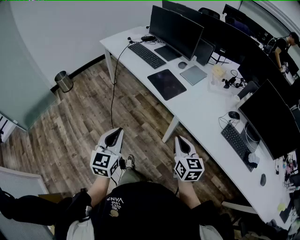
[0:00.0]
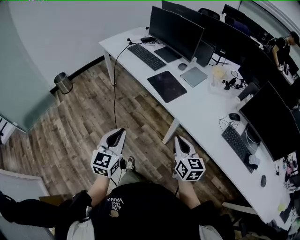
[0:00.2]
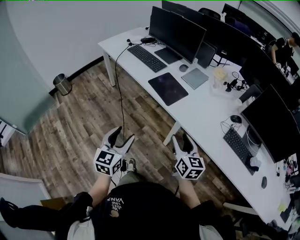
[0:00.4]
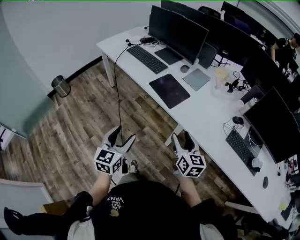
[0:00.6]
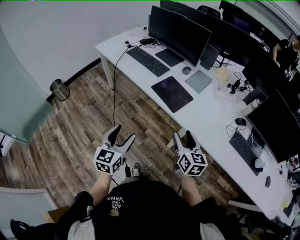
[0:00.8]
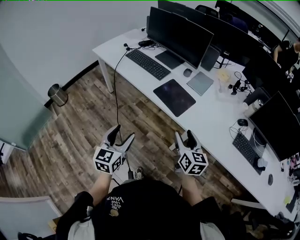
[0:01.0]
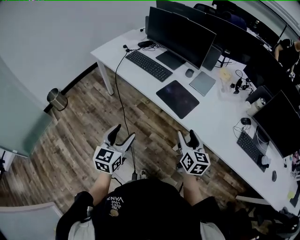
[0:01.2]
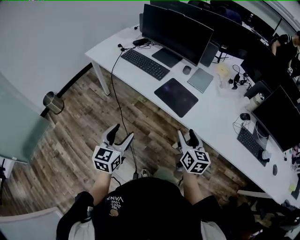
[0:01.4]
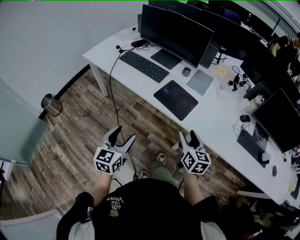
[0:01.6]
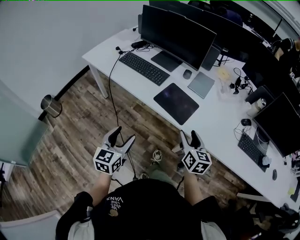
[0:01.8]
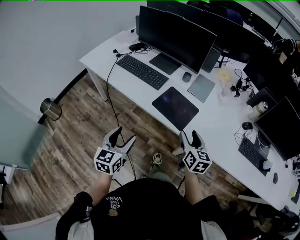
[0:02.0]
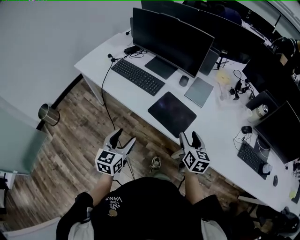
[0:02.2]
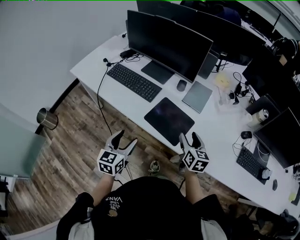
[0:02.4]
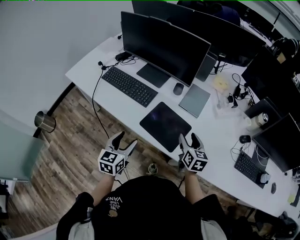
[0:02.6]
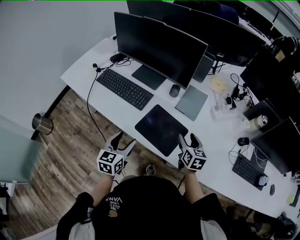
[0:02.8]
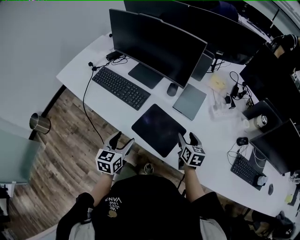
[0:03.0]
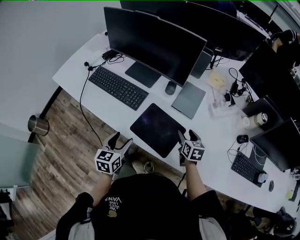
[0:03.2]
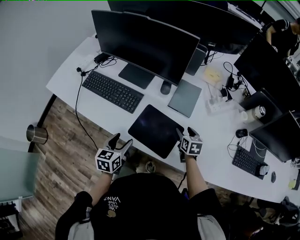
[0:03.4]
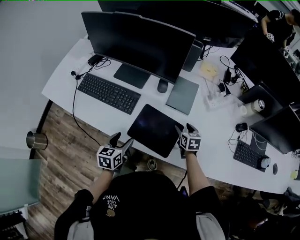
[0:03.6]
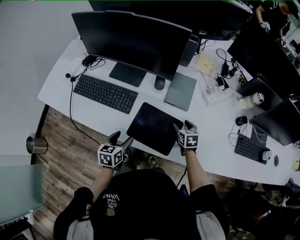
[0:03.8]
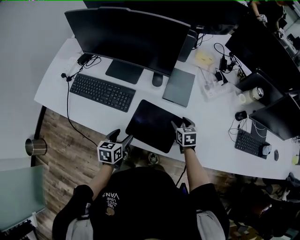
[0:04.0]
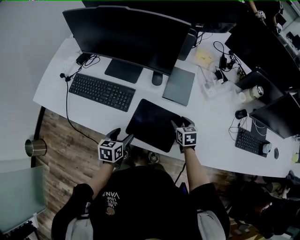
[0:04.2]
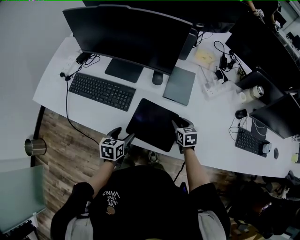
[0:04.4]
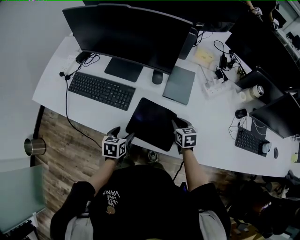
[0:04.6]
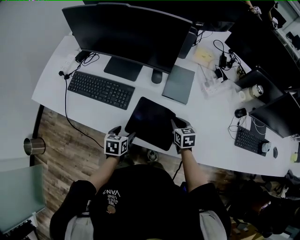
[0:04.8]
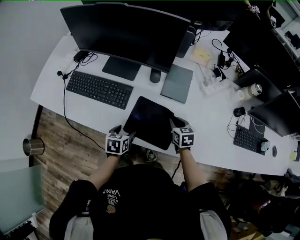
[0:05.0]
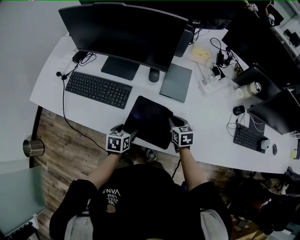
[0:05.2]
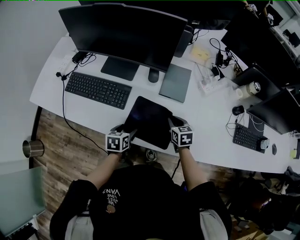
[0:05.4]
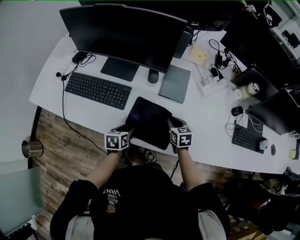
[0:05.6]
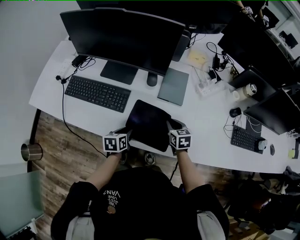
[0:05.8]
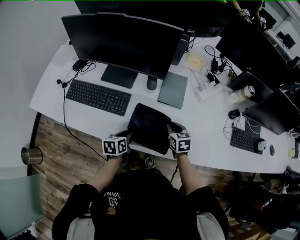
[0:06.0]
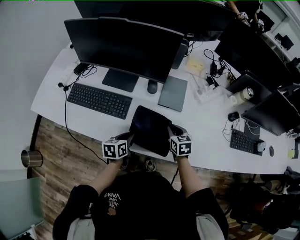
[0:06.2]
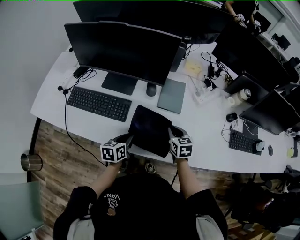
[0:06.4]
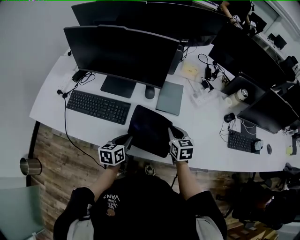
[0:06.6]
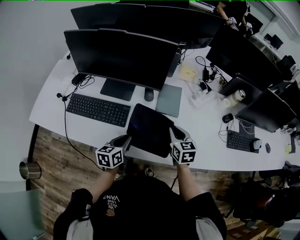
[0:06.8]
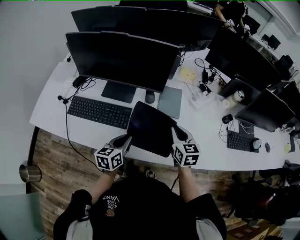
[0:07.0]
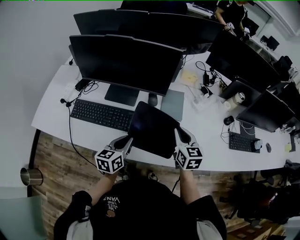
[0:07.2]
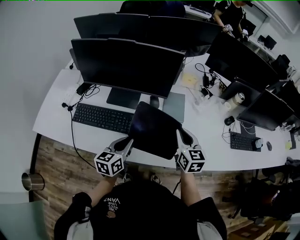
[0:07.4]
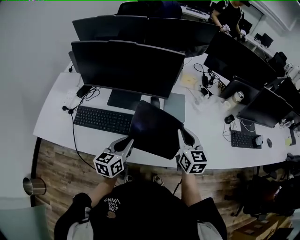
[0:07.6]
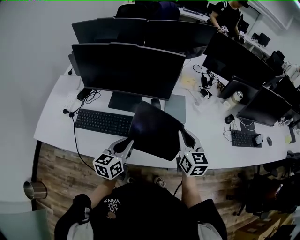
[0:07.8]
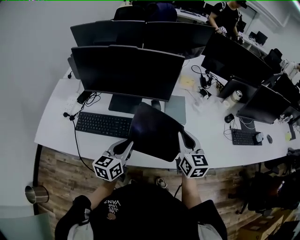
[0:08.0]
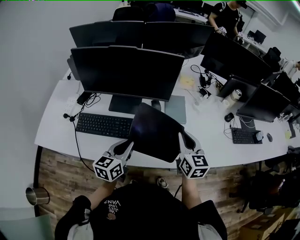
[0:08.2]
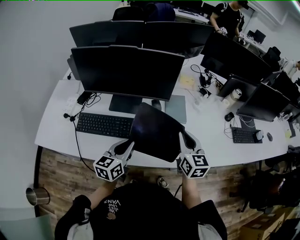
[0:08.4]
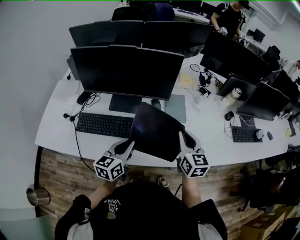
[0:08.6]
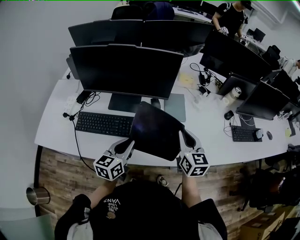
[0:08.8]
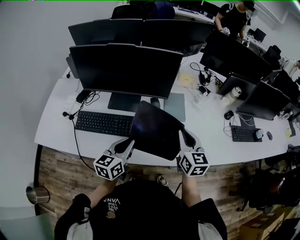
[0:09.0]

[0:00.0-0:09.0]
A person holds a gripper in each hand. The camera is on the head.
0:00.0 to 0:01.6: The two grippers go approximately 20 cm forward and to the left. The left gripper rotates about 20 degrees, and opens its fingers; the right gripper rotates some 20 degrees, and opens its fingers.
0:01.6 to 0:03.0: The left gripper goes some 25 cm forward, while the right gripper heads forward and downward, covering some 30 cm.
0:03.0 to 0:04.4: The right gripper is displaced downward by approximately 10 cm; the left gripper heads downward and forward, covering roughly 10 cm, and swivels some 30 degrees.
0:04.4 to 0:06.0: The left gripper closes its fingers; the right gripper closes its fingers.
0:06.0 to 0:07.6: The grippers both shift upward by some 20 cm. The left gripper rotates approximately 30 degrees, while the right gripper changes its angle by roughly 30 degrees.
0:07.6 to 0:09.0: There are only small adjustments of the grippers.

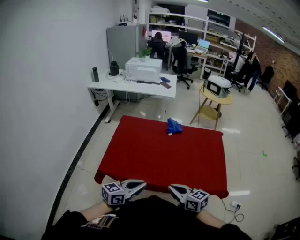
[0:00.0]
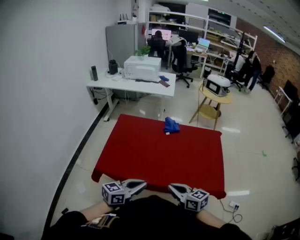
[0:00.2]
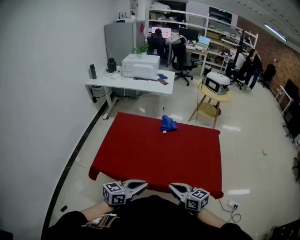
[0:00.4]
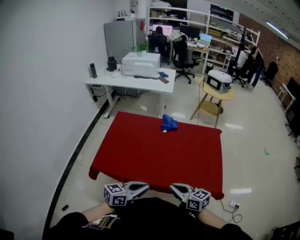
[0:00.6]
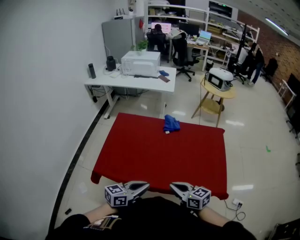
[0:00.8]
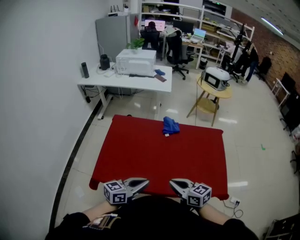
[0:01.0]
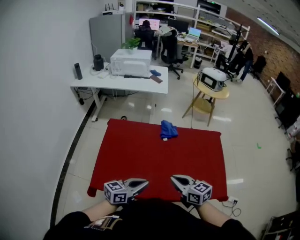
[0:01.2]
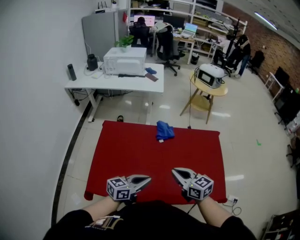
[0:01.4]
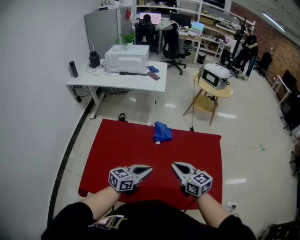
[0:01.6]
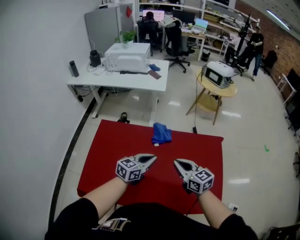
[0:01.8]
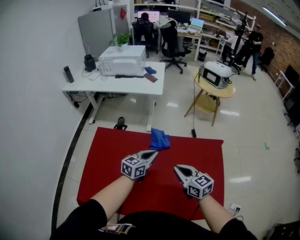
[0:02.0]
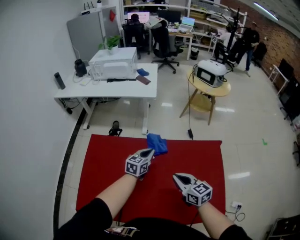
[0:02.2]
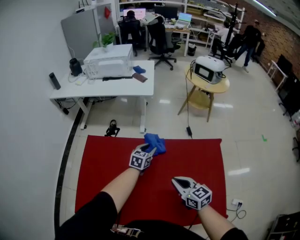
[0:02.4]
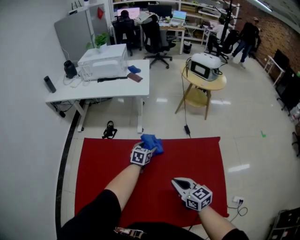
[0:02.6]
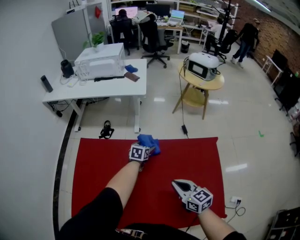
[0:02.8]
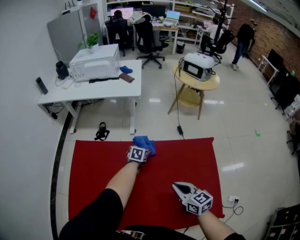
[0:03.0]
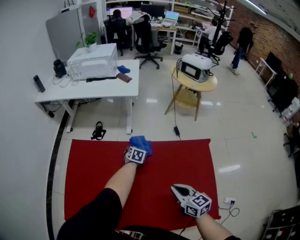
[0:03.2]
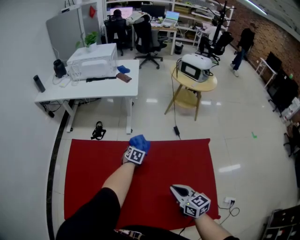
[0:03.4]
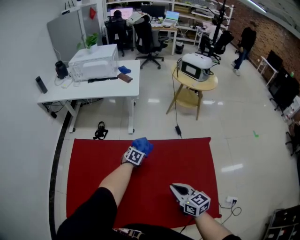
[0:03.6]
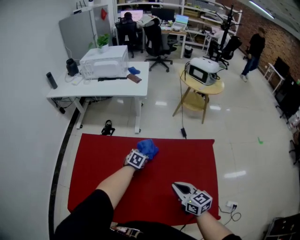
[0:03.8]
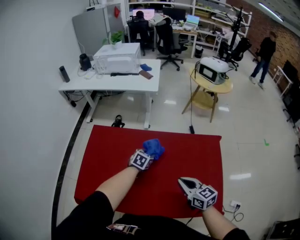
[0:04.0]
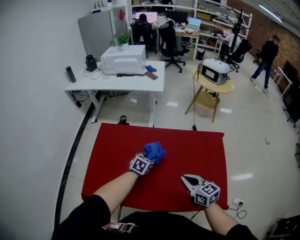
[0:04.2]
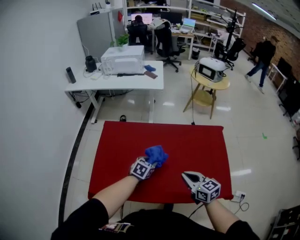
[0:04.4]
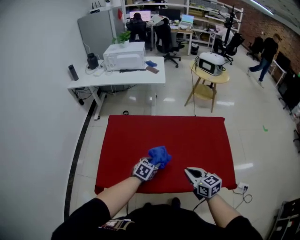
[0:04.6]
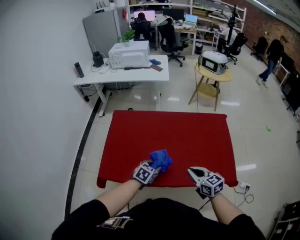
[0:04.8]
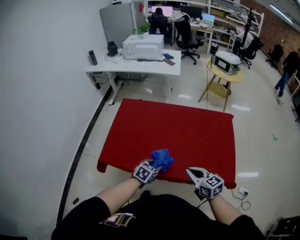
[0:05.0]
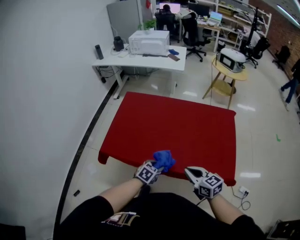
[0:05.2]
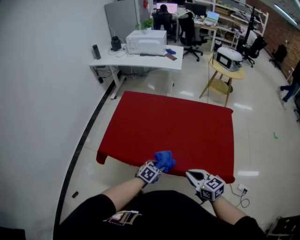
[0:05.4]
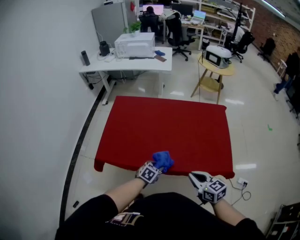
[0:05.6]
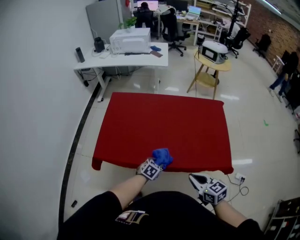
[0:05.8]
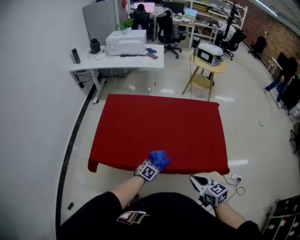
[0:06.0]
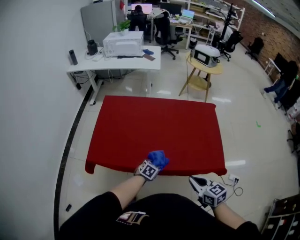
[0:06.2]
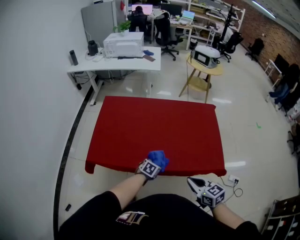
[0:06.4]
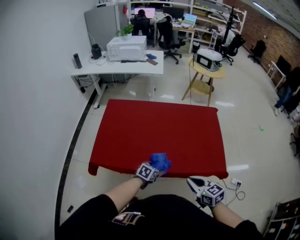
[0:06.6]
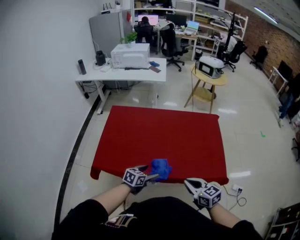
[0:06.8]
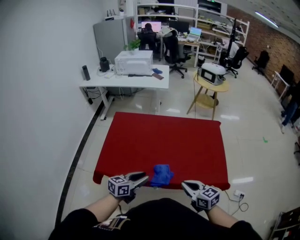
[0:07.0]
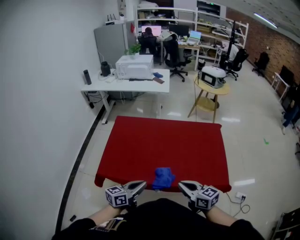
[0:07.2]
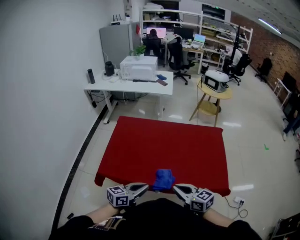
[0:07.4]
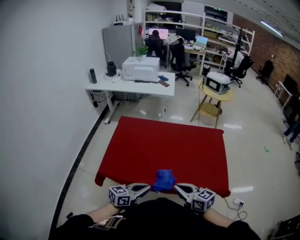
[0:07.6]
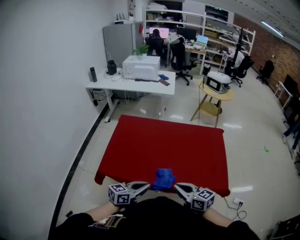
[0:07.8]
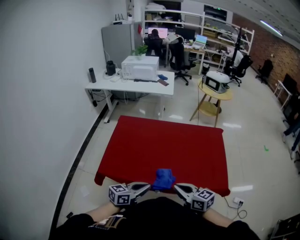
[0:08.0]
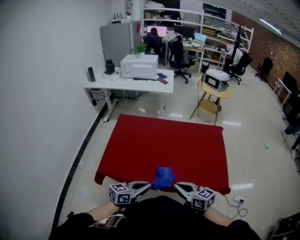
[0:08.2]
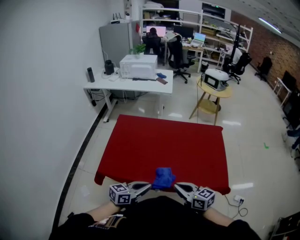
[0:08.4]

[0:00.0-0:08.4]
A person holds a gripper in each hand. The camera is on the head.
0:00.0 to 0:01.4: The grippers both shift forward by roughly 20 cm.
0:01.4 to 0:02.8: The left gripper is displaced forward and downward by approximately 50 cm, points its fingers some 30 degrees further downward, and opens its fingers; the right gripper heads forward, to the right and downward, covering roughly 20 cm.
0:02.8 to 0:04.2: The right gripper heads backward, covering roughly 10 cm. Meanwhile the left gripper shifts some 20 cm backward, and closes its fingers.
0:04.2 to 0:05.6: The two grippers go about 30 cm backward.
0:05.6 to 0:07.0: The left gripper heads upward, covering approximately 15 cm, angles its fingers upward, by roughly 40 degrees, and opens, then closes once more.
0:07.0 to 0:08.4: The left gripper ends up some 5 cm from where it was, and closes its fingers.

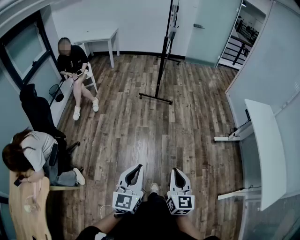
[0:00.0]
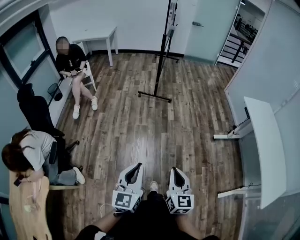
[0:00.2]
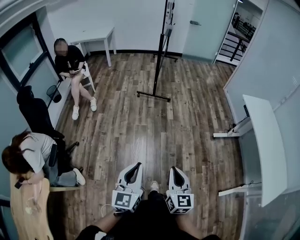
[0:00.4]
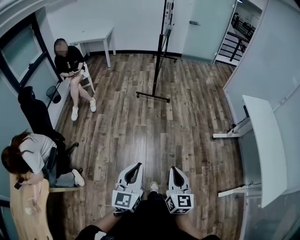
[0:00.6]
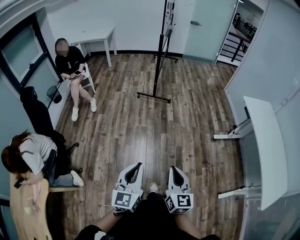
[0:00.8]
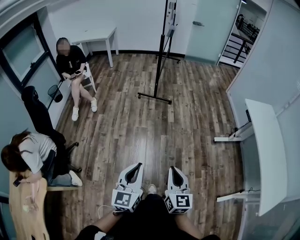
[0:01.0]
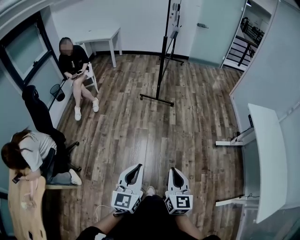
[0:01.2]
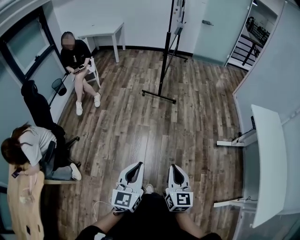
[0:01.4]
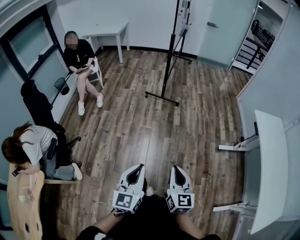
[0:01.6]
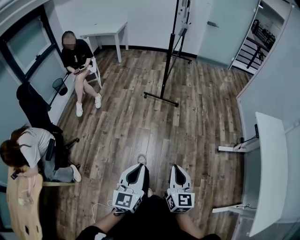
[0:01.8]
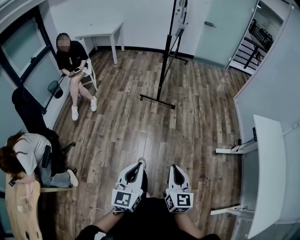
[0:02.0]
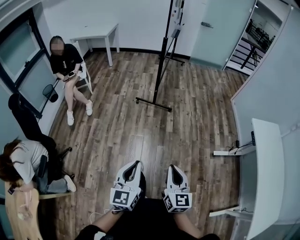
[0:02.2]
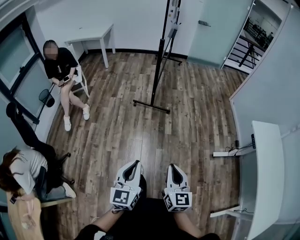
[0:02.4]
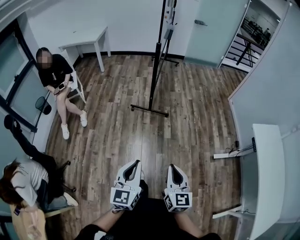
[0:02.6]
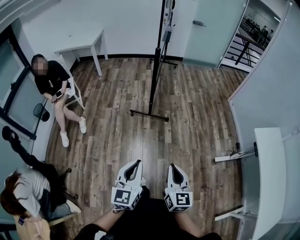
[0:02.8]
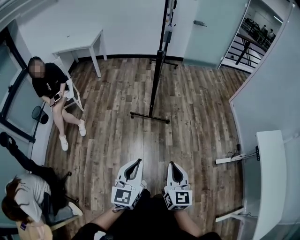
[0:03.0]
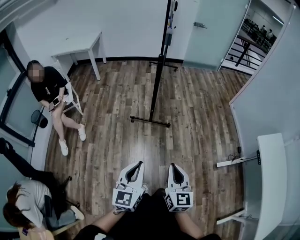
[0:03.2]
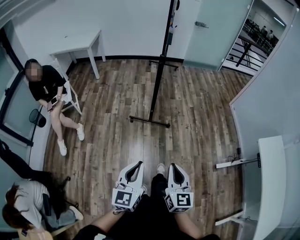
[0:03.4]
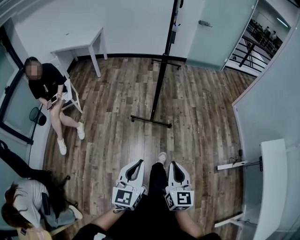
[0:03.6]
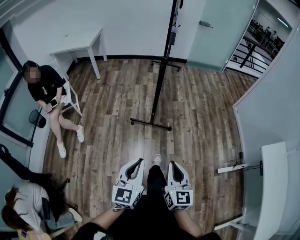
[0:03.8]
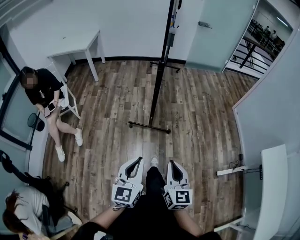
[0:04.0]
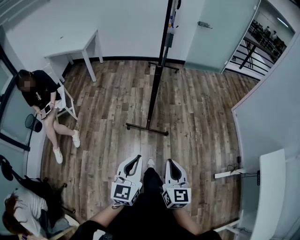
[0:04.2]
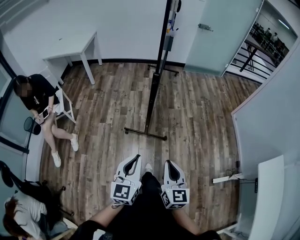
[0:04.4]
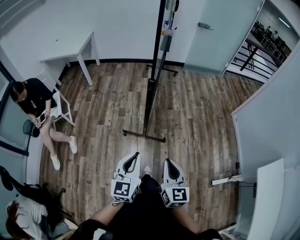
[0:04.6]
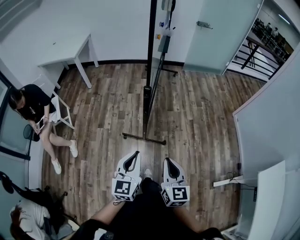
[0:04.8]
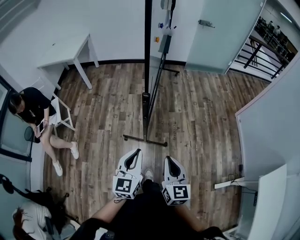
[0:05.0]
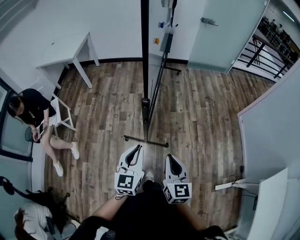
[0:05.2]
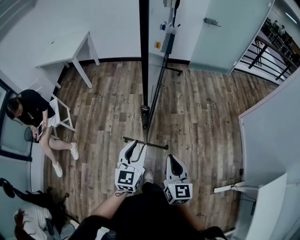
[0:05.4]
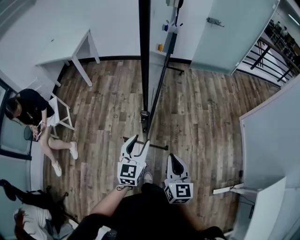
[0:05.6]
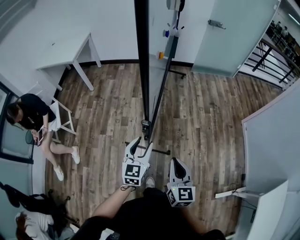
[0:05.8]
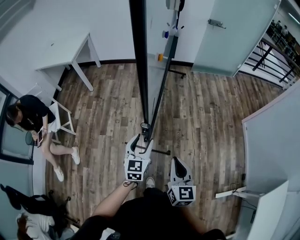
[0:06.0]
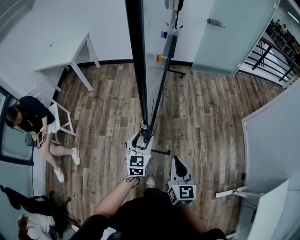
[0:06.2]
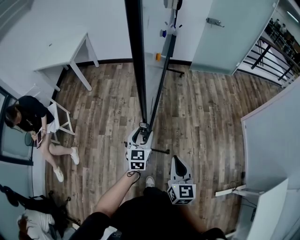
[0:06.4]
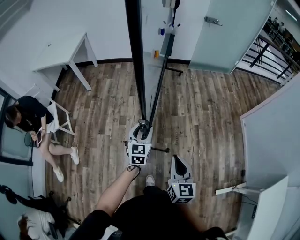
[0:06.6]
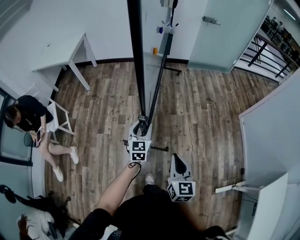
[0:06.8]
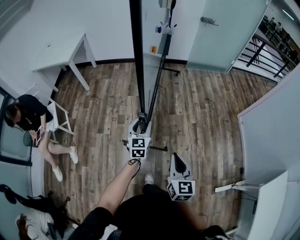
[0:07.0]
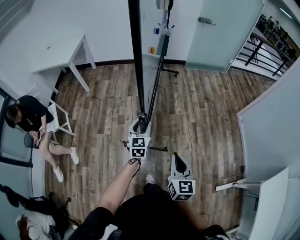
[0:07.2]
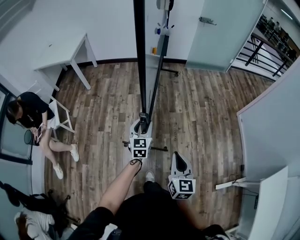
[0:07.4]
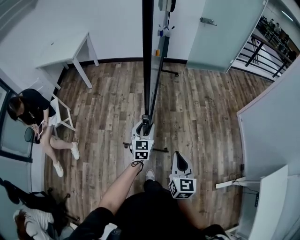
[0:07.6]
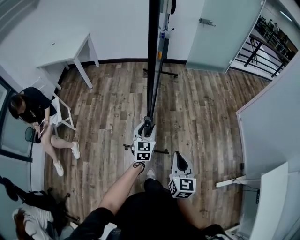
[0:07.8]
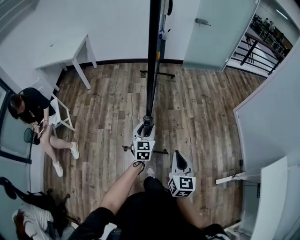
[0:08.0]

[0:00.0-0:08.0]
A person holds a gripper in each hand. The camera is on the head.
0:00.0 to 0:01.6: The grippers both shift forward and to the right by approximately 15 cm.
0:01.6 to 0:03.2: The pair of grippers is taken forward, roughly 50 cm.
0:03.2 to 0:04.8: The grippers both shift forward by roughly 40 cm.
0:04.8 to 0:06.4: Both grippers travel together forward, approximately 25 cm. The left gripper opens its fingers.
0:06.4 to 0:08.0: Both grippers move backward, some 15 cm.
